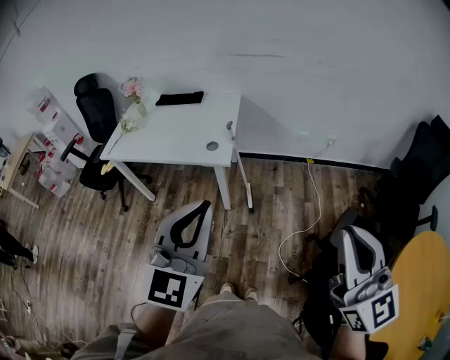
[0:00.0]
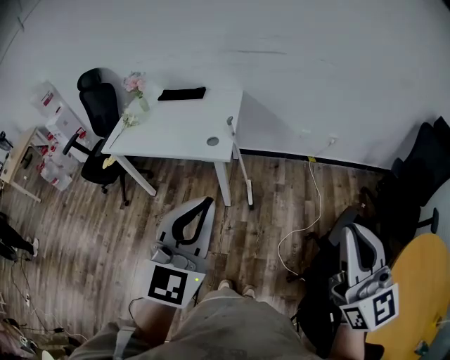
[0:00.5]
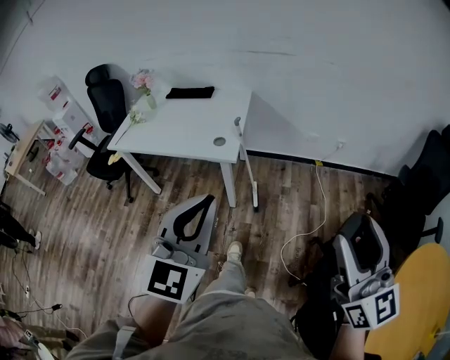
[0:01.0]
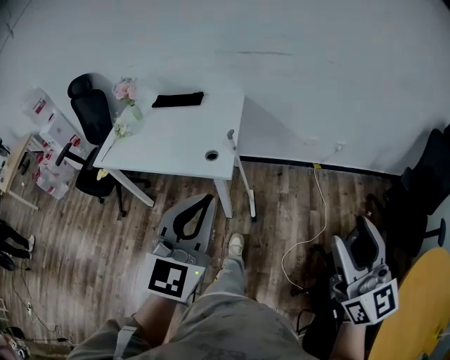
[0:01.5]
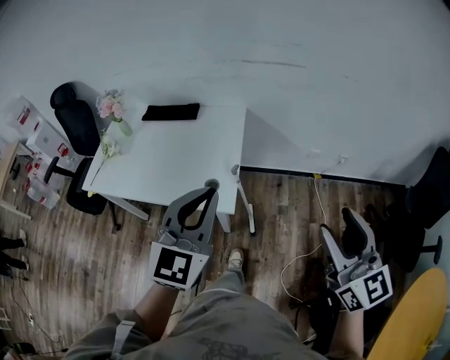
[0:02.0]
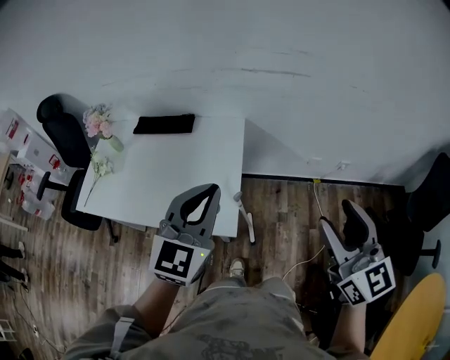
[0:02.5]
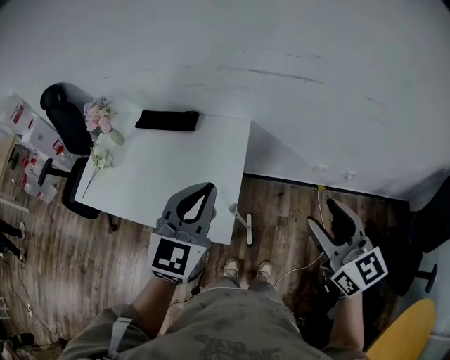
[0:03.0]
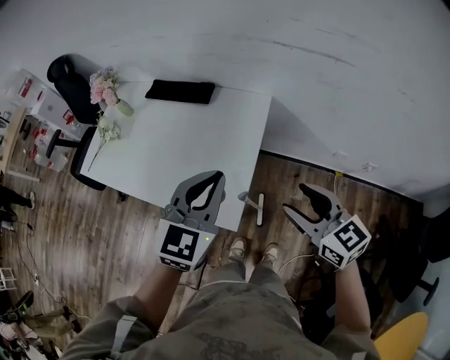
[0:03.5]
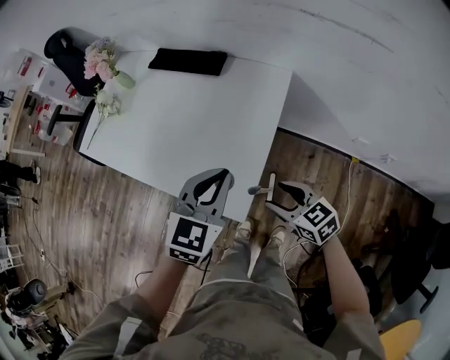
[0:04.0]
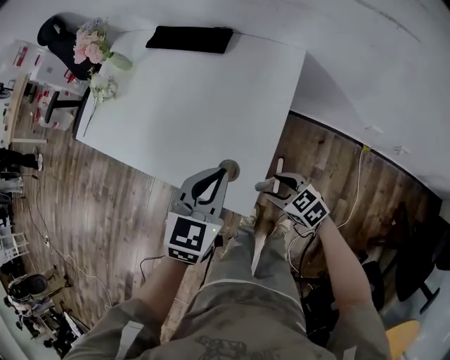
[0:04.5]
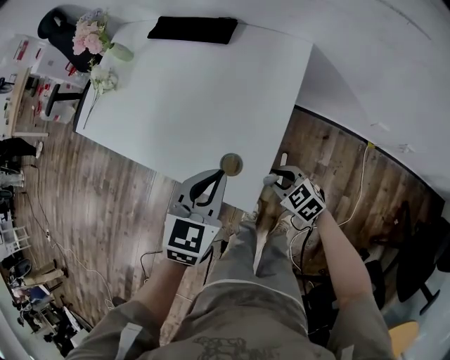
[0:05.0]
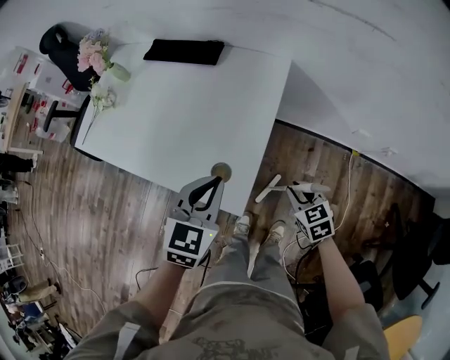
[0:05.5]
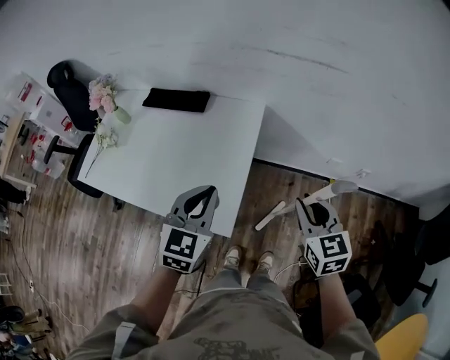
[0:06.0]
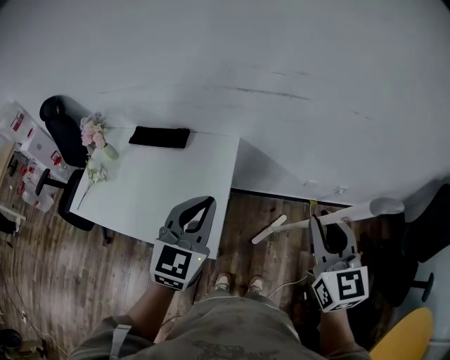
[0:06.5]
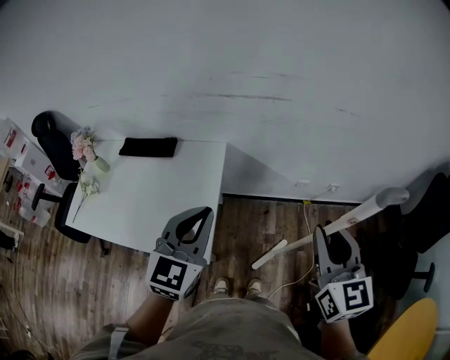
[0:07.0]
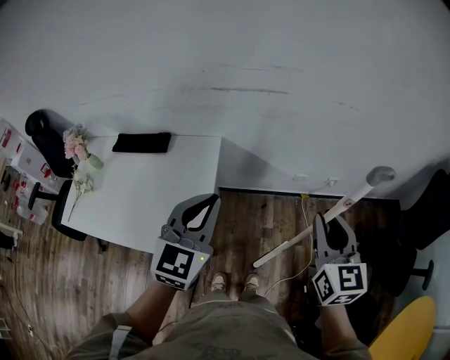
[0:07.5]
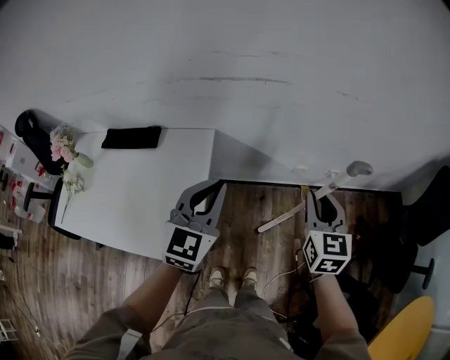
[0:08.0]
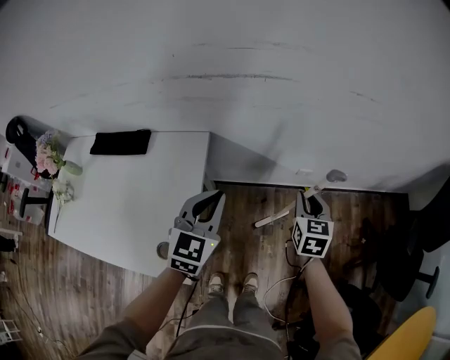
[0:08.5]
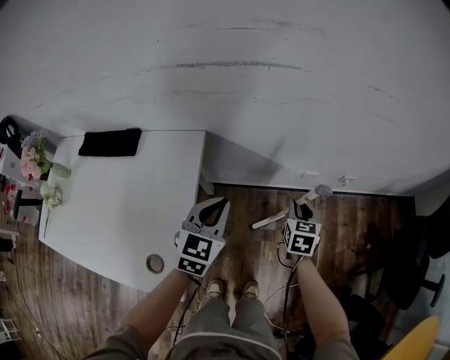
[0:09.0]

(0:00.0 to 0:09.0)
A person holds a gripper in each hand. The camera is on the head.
0:00.0 - 0:02.0: The grippers both shift forward by roughly 30 cm. The right gripper opens up.
0:02.0 - 0:04.5: The right gripper travels downward by about 40 cm, and tilts its fingers roughly 40 degrees downward; the left gripper travels downward by about 25 cm, and angles its fingers downward, by about 30 degrees.
0:04.5 - 0:07.0: The left gripper goes about 25 cm upward, and turns by about 30 degrees. Meanwhile the right gripper travels upward by some 40 cm, tips its fingers upward by some 30 degrees, and closes up.
0:07.0 - 0:09.0: The two grippers go approximately 40 cm downward and forward. The right gripper tips its fingers downward by some 30 degrees.

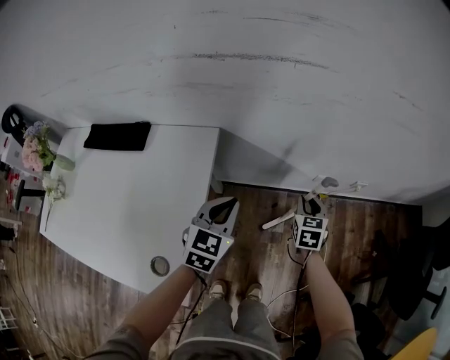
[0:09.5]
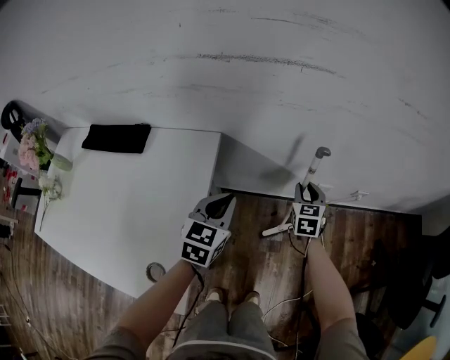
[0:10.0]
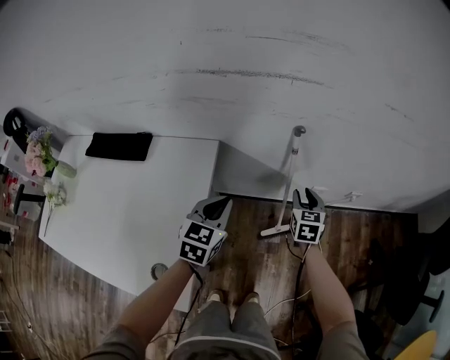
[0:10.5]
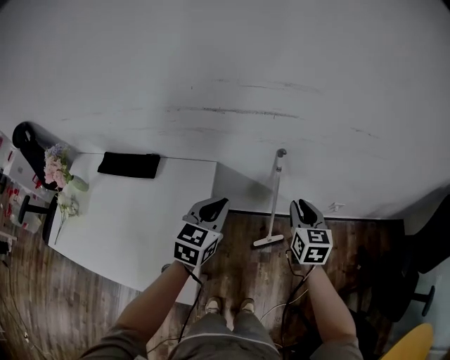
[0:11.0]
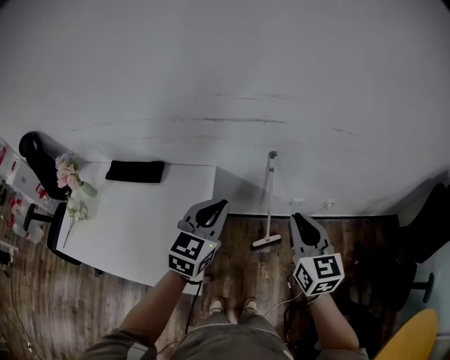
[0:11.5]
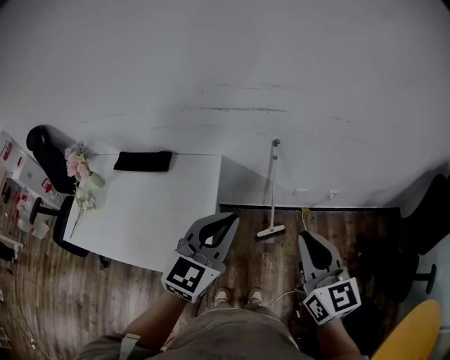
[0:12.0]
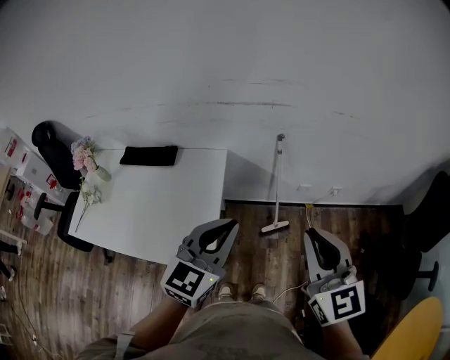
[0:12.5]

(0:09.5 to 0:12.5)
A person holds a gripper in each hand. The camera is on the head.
0:09.5 - 0:11.0: The left gripper travels upward by about 15 cm. The right gripper travels upward by about 20 cm.
0:11.0 - 0:12.5: Both grippers travel together backward and upward, about 30 cm. The right gripper changes its angle by approximately 20 degrees.

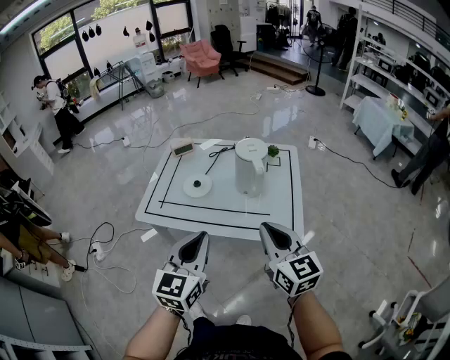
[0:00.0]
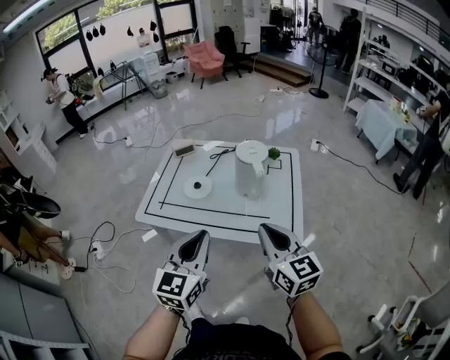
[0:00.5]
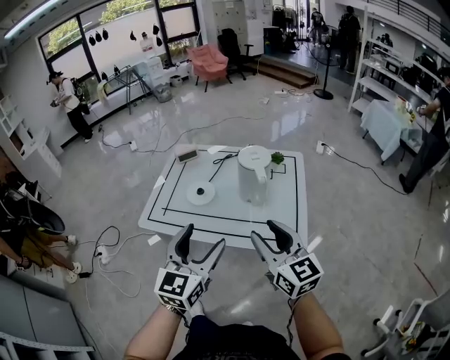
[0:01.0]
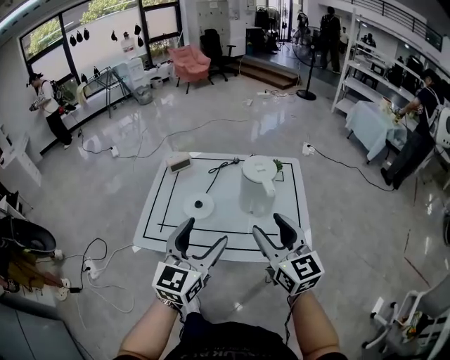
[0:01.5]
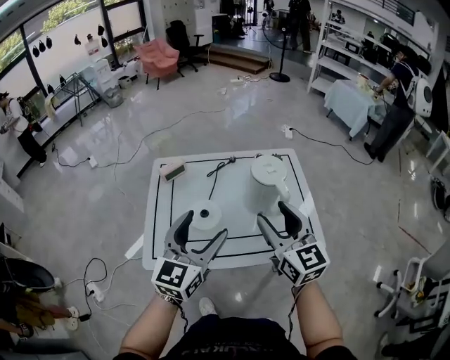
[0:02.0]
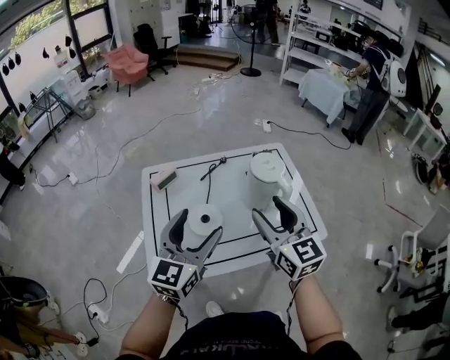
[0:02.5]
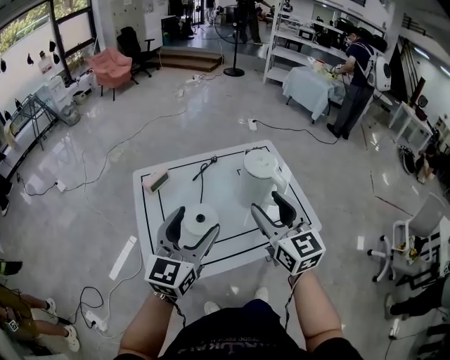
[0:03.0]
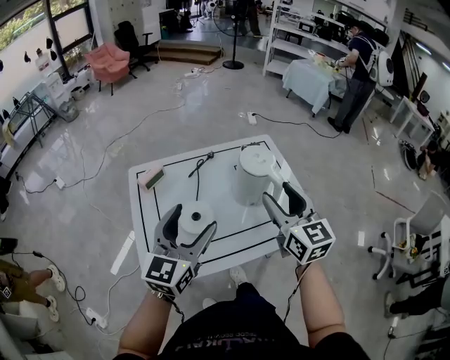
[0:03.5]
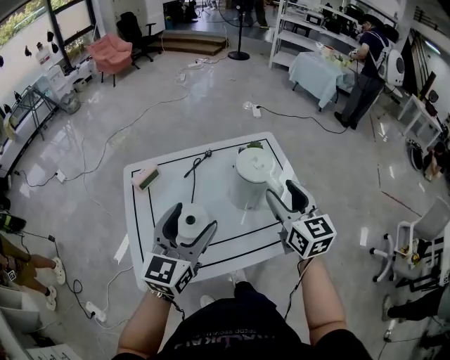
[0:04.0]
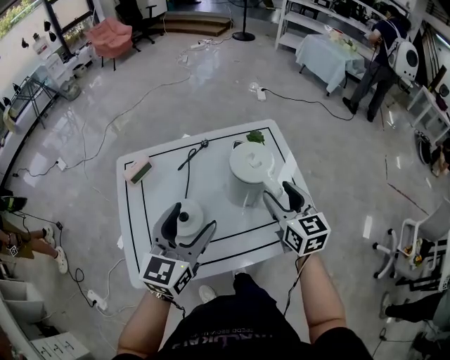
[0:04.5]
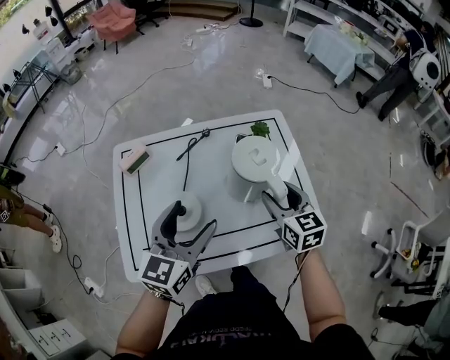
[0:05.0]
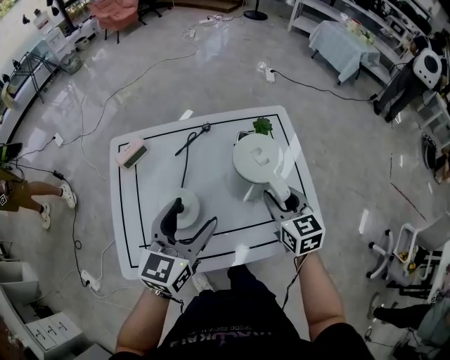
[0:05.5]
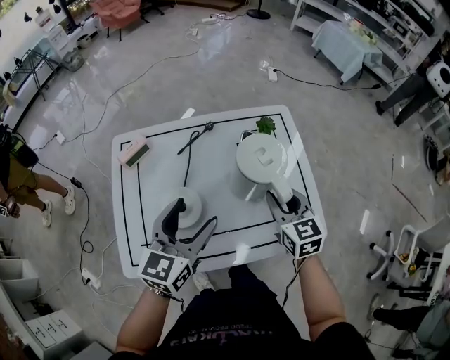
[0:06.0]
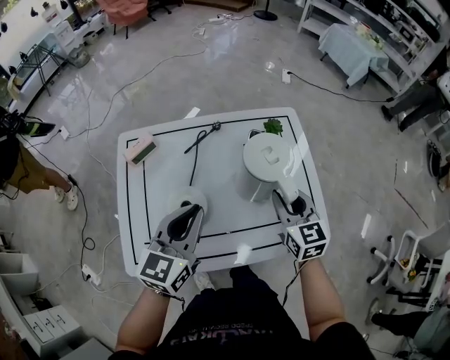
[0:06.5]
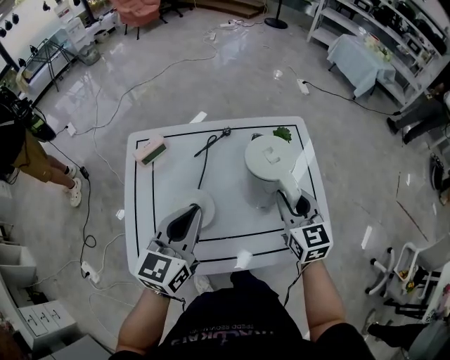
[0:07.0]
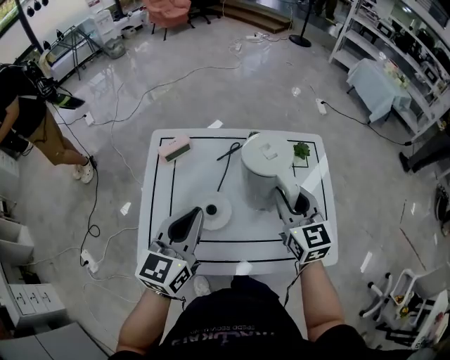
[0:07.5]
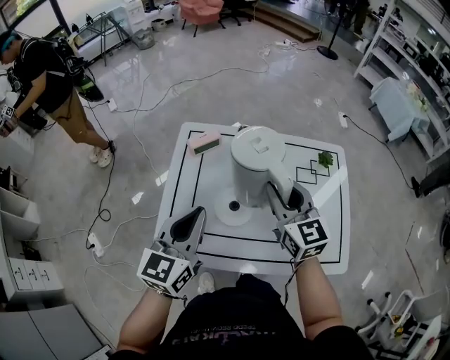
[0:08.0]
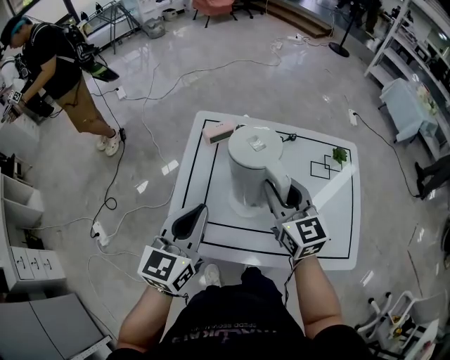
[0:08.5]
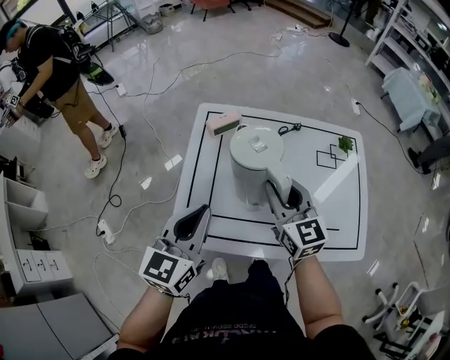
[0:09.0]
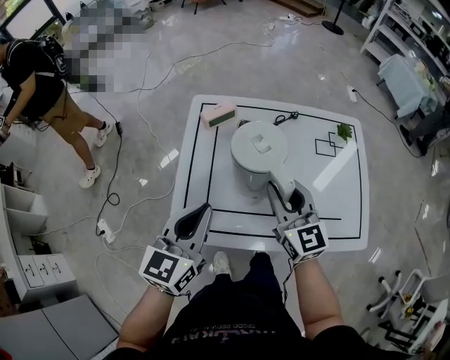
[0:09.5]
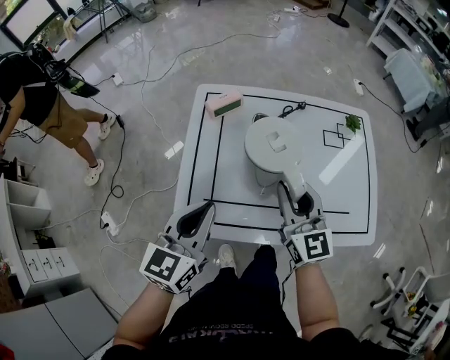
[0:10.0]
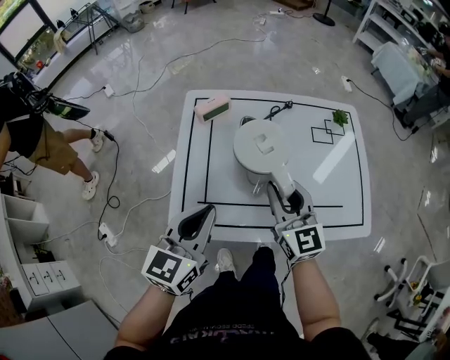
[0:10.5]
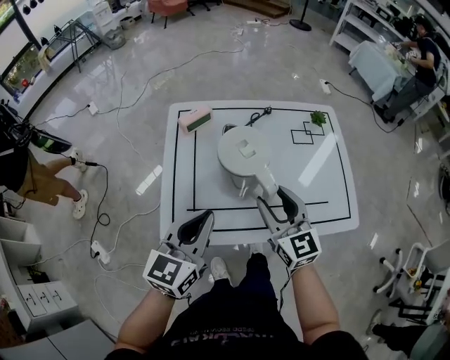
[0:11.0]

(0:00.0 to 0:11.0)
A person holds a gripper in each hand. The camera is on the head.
0:00.0 - 0:02.0: The grippers both shift forward and to the left by roughly 20 cm. The right gripper opens its fingers. The left gripper opens its fingers.
0:02.0 - 0:03.5: The left gripper shifts roughly 5 cm to the left.
0:03.5 - 0:05.5: The left gripper shifts approximately 15 cm forward, downward and to the right. The right gripper shifts some 20 cm downward and forward, changes its angle by roughly 20 degrees, and closes its fingers.
0:05.5 - 0:07.5: The right gripper goes some 15 cm to the left and upward. Meanwhile the left gripper shifts approximately 10 cm to the left, and closes its fingers.
0:07.5 - 0:09.0: The left gripper is displaced to the left and backward by roughly 15 cm, while the right gripper shifts some 20 cm to the left.
0:09.0 - 0:11.0: The left gripper moves about 5 cm. The right gripper shifts roughly 10 cm backward, and opens its fingers.

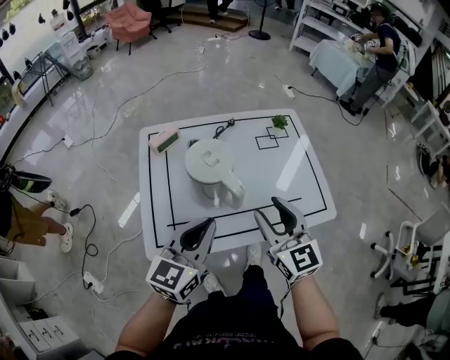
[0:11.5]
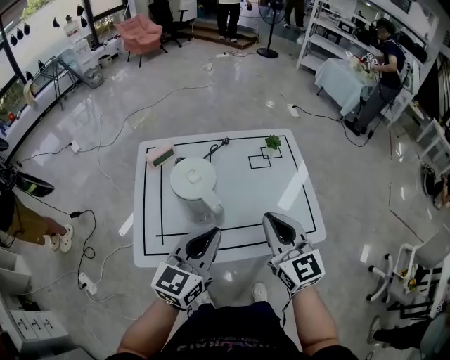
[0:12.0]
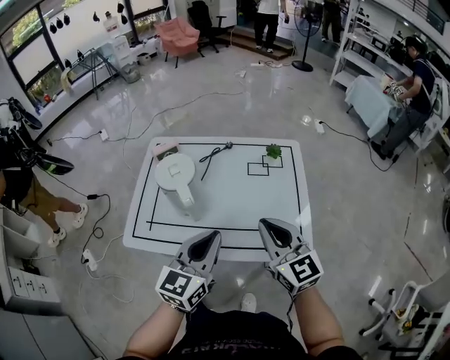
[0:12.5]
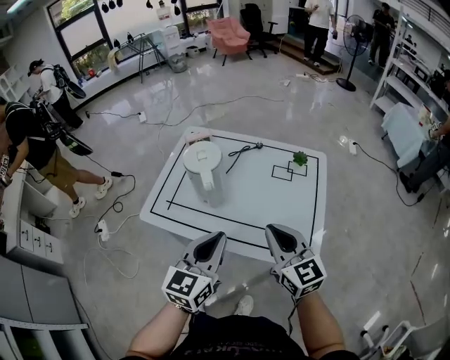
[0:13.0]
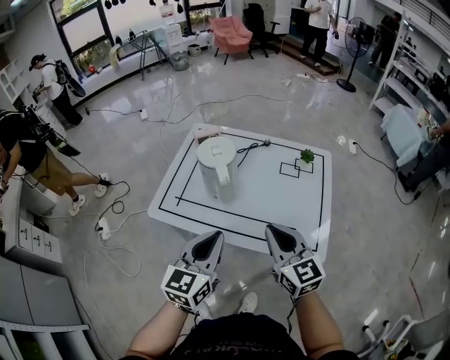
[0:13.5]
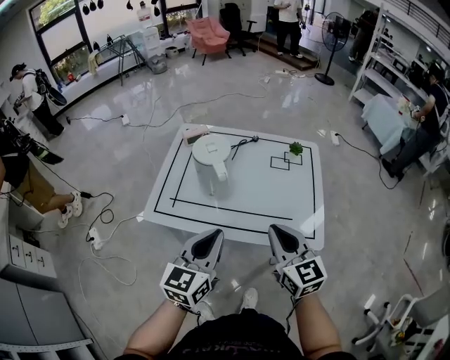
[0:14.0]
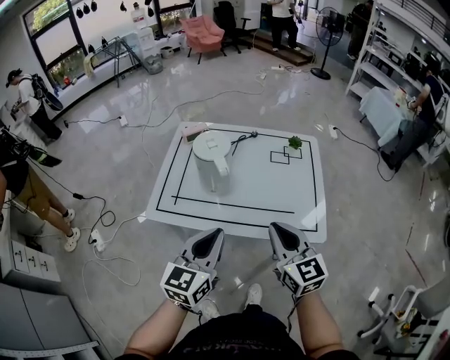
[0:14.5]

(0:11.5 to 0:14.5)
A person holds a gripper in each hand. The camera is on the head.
0:11.5 - 0:13.0: The left gripper changes place by roughly 20 cm, and changes its angle by roughly 30 degrees. The right gripper ends up approximately 15 cm from where it was, rotates approximately 30 degrees, and closes up.
0:13.0 - 0:14.5: The right gripper heads backward and to the left, covering approximately 10 cm. The left gripper is displaced to the left by approximately 10 cm.
